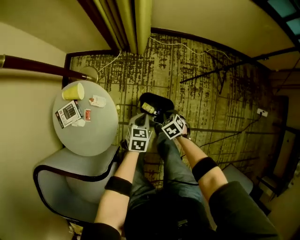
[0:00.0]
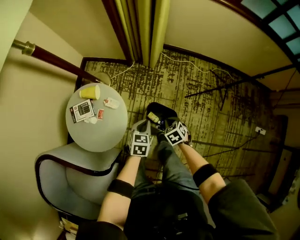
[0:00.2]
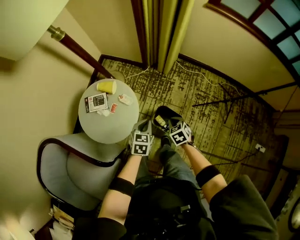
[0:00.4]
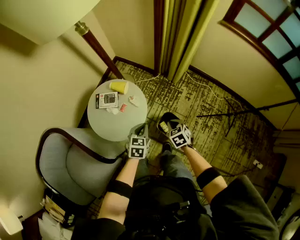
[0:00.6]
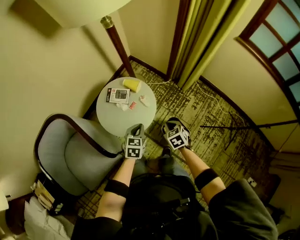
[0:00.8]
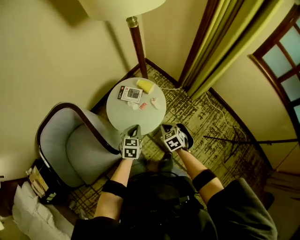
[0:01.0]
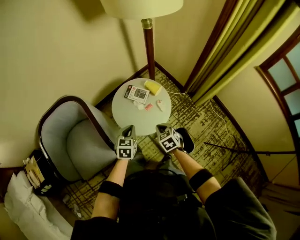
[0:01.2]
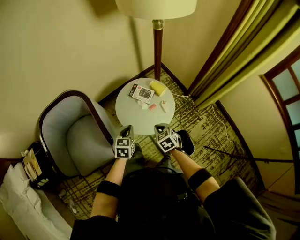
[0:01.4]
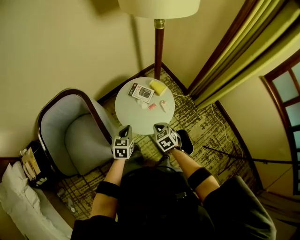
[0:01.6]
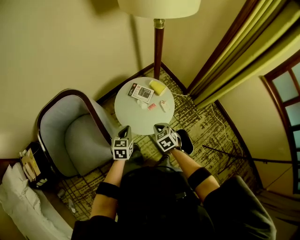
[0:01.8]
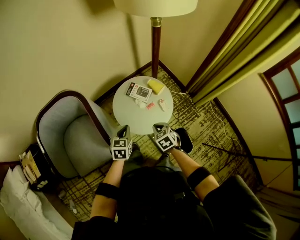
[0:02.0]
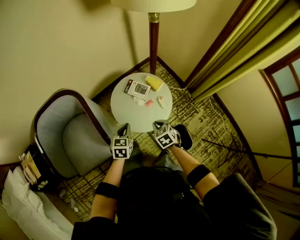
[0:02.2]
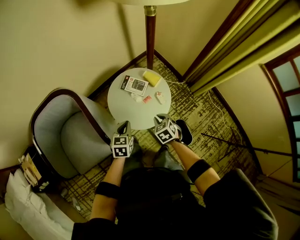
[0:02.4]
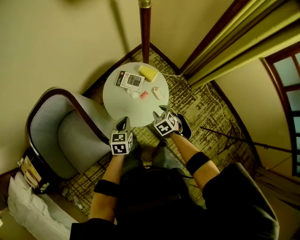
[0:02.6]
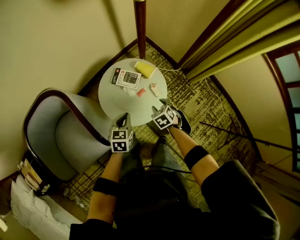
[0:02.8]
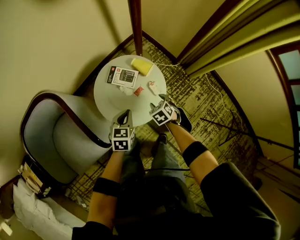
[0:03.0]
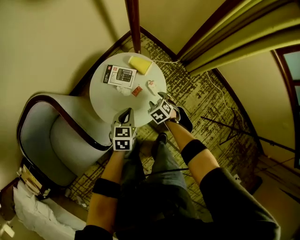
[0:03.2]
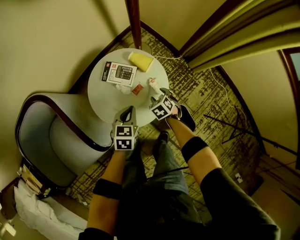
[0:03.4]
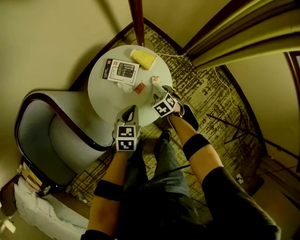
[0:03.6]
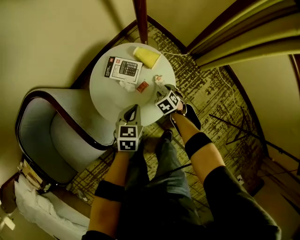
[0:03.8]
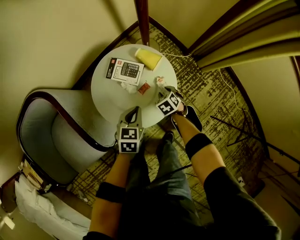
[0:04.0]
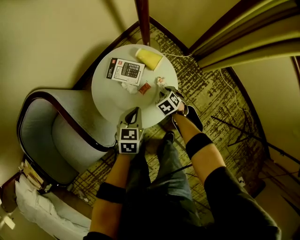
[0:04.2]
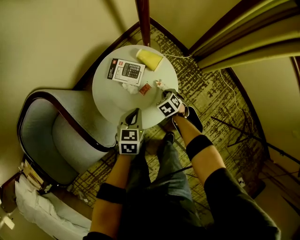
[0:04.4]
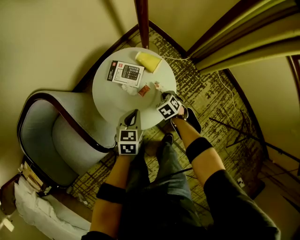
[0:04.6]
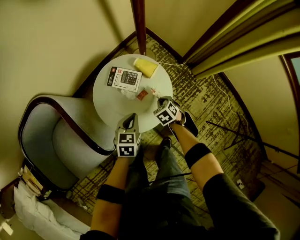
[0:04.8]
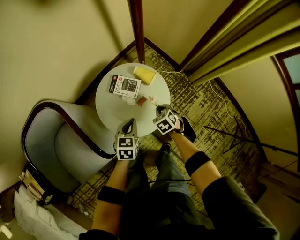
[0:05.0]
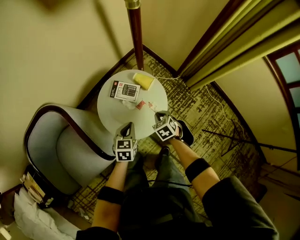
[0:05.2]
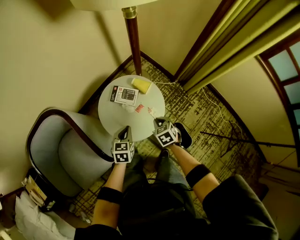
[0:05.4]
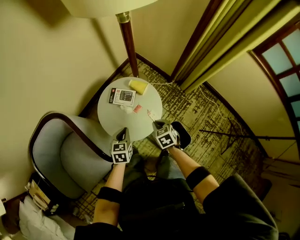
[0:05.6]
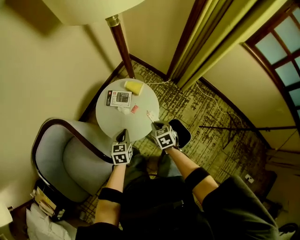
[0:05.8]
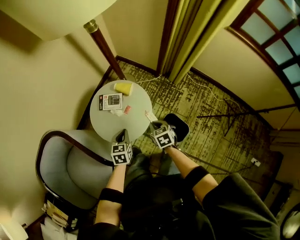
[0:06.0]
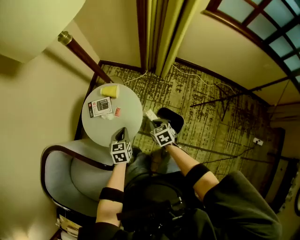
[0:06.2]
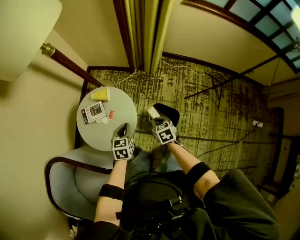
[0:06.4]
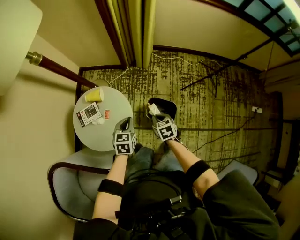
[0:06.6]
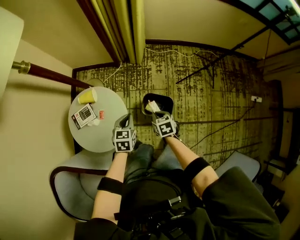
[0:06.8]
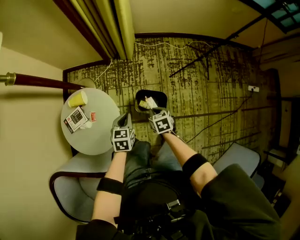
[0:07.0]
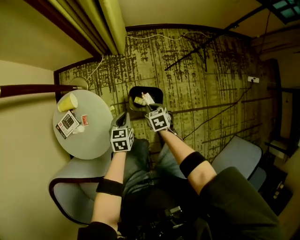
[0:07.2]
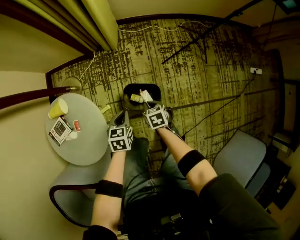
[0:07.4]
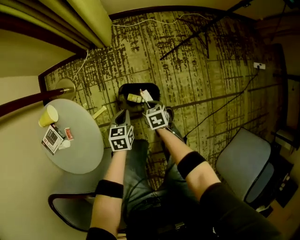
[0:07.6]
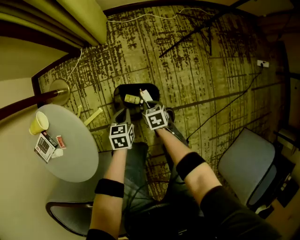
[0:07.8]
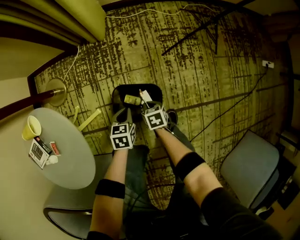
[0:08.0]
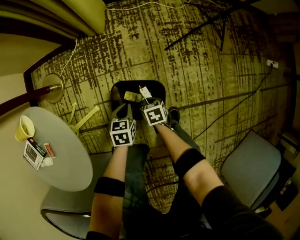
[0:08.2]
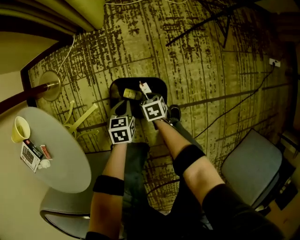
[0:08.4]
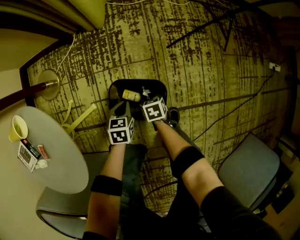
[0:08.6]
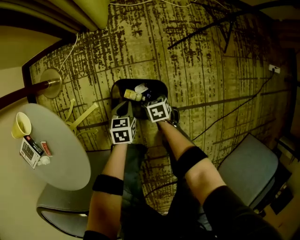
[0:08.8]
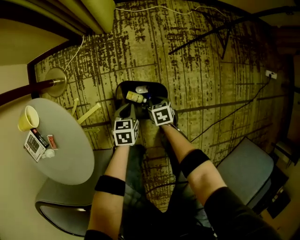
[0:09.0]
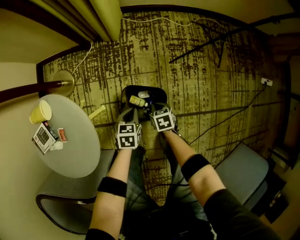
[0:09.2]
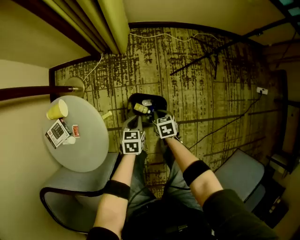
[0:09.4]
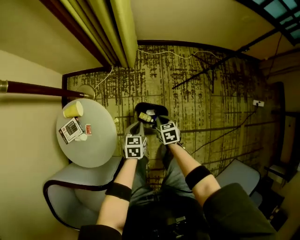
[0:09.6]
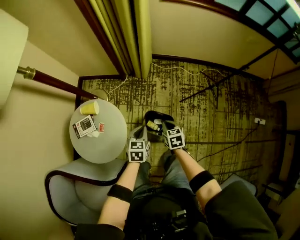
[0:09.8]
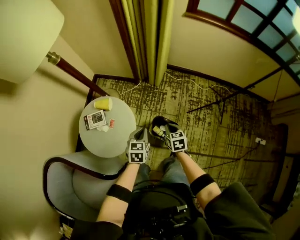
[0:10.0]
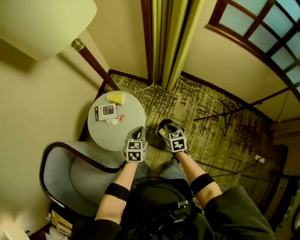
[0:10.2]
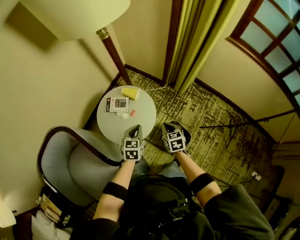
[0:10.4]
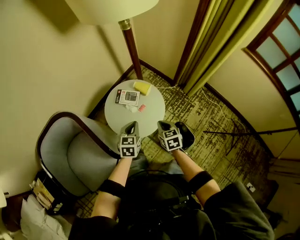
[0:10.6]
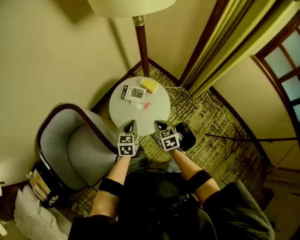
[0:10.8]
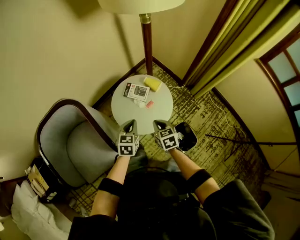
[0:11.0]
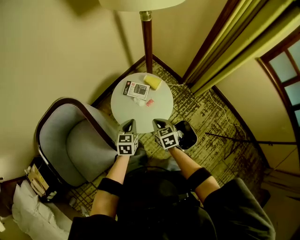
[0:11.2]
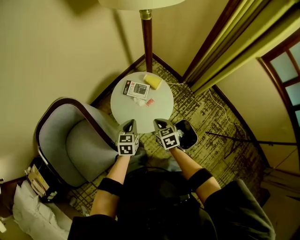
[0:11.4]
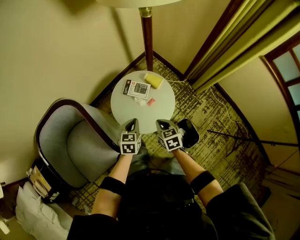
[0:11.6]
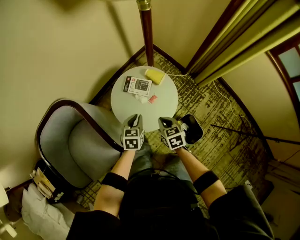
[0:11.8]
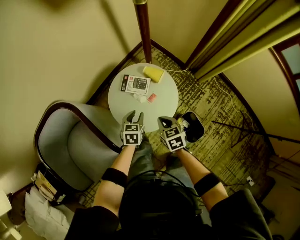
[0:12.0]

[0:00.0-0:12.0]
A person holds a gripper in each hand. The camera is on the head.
0:00.0 to 0:01.6: The right gripper shifts by approximately 40 cm, and rolls counterclockwise, seen from behind, by roughly 40 degrees, while the left gripper moves about 50 cm, and swivels roughly 60 degrees.
0:01.6 to 0:03.0: The left gripper heads downward, forward and to the right, covering roughly 15 cm. Meanwhile the right gripper moves downward, forward and to the right, some 20 cm, and opens its fingers.
0:03.0 to 0:04.4: The right gripper shifts approximately 15 cm downward, and closes its fingers, while the left gripper shifts roughly 10 cm downward.
0:04.4 to 0:06.0: The left gripper heads upward and backward, covering roughly 10 cm; the right gripper travels upward and backward by roughly 30 cm, and swivels about 40 degrees.
0:06.0 to 0:07.6: The left gripper changes place by roughly 40 cm, and swivels roughly 40 degrees, while the right gripper heads downward, covering roughly 30 cm, and rotates around the line of its fingers by approximately 40 degrees, clockwise from behind.
0:07.6 to 0:09.0: The grippers both shift downward by roughly 15 cm.
0:09.0 to 0:10.4: The two grippers go some 50 cm upward. The right gripper changes its angle by roughly 50 degrees. Meanwhile the left gripper turns by about 40 degrees.
0:10.4 to 0:12.0: The left gripper goes approximately 20 cm to the left, downward and forward, and opens. The right gripper is displaced to the left and forward by about 20 cm.

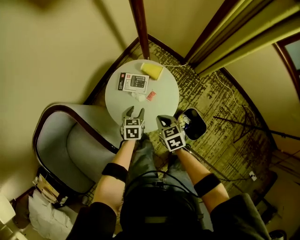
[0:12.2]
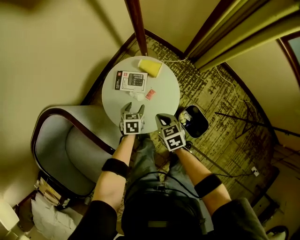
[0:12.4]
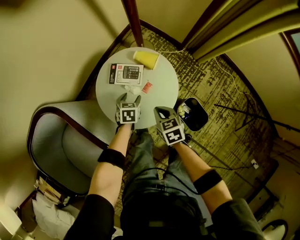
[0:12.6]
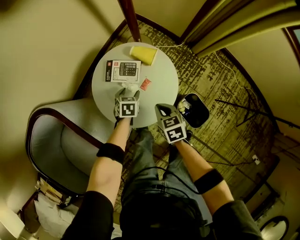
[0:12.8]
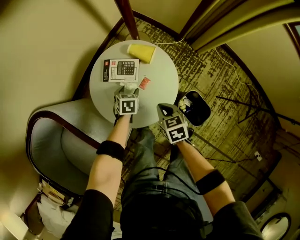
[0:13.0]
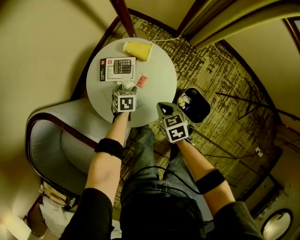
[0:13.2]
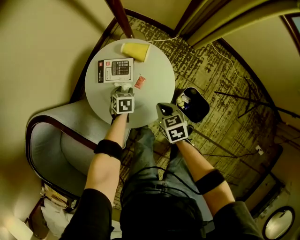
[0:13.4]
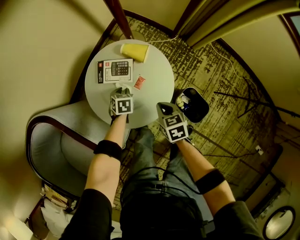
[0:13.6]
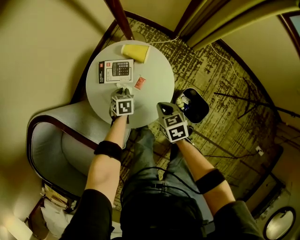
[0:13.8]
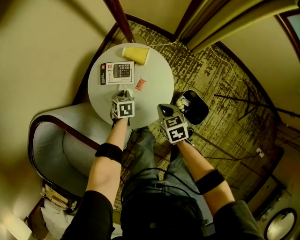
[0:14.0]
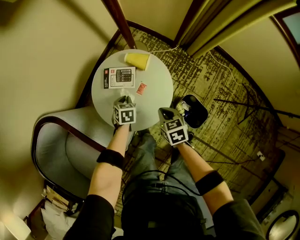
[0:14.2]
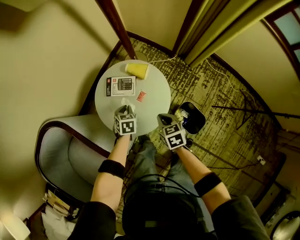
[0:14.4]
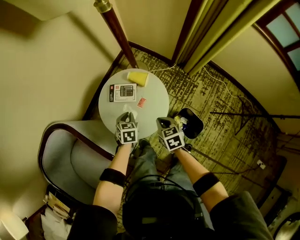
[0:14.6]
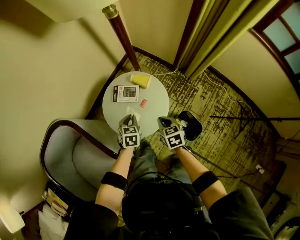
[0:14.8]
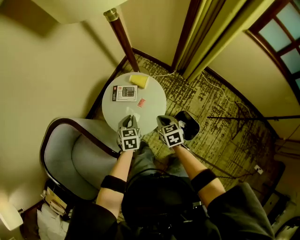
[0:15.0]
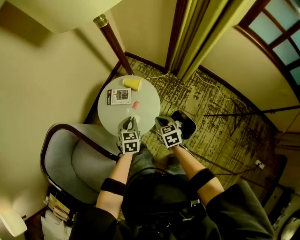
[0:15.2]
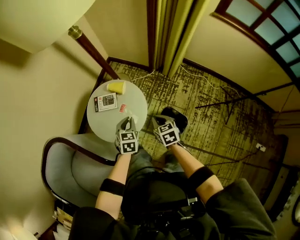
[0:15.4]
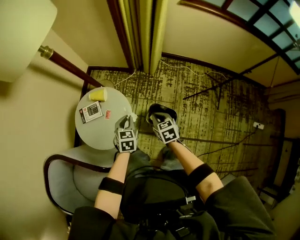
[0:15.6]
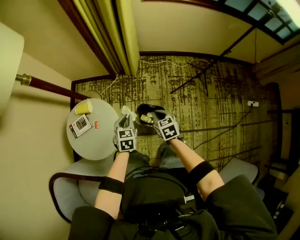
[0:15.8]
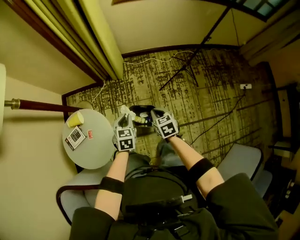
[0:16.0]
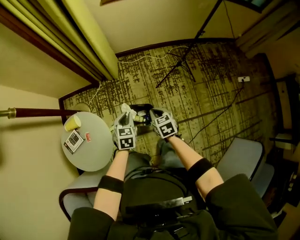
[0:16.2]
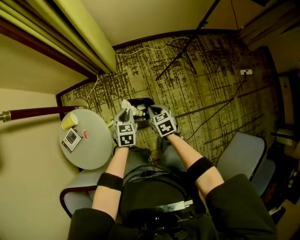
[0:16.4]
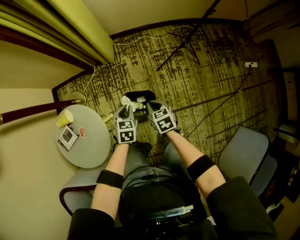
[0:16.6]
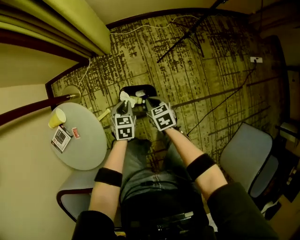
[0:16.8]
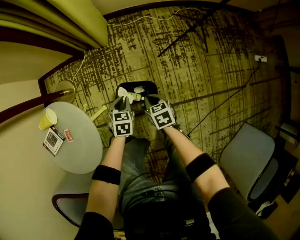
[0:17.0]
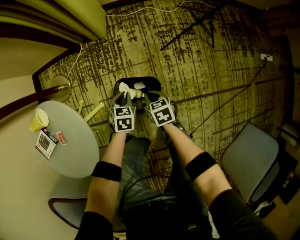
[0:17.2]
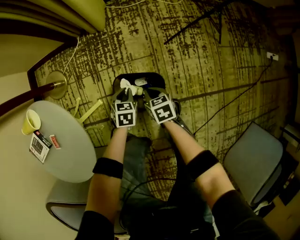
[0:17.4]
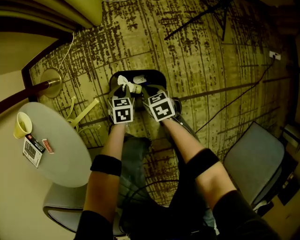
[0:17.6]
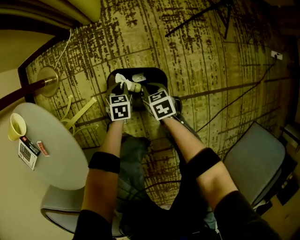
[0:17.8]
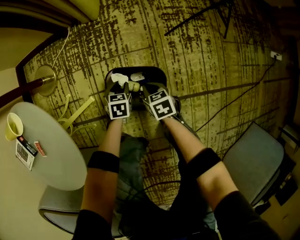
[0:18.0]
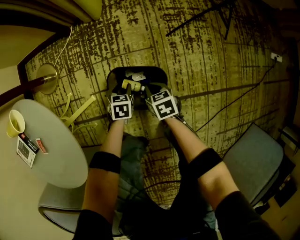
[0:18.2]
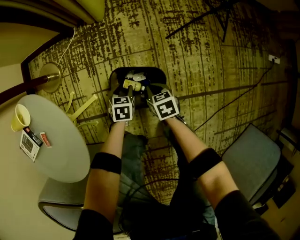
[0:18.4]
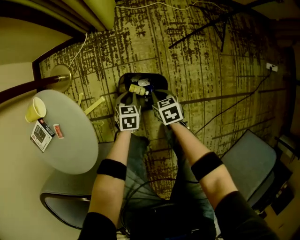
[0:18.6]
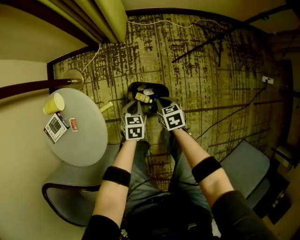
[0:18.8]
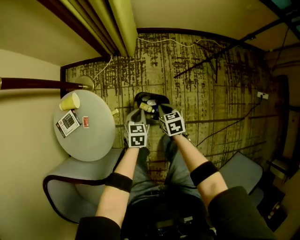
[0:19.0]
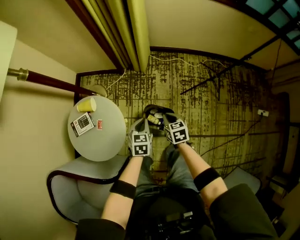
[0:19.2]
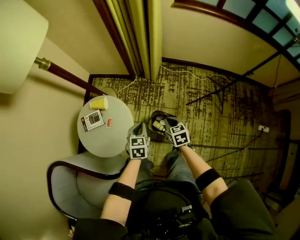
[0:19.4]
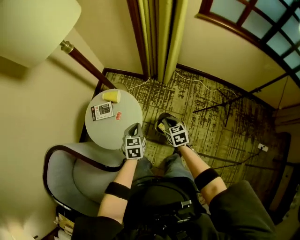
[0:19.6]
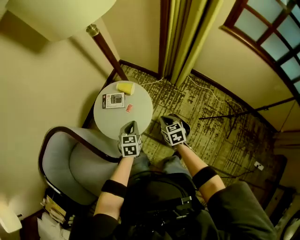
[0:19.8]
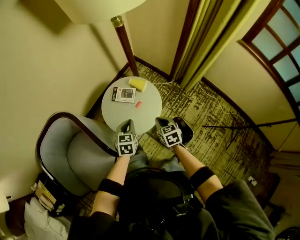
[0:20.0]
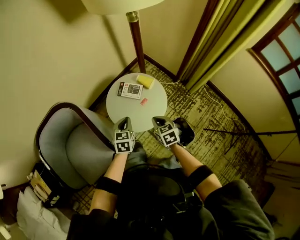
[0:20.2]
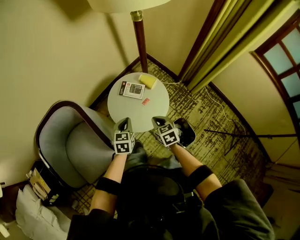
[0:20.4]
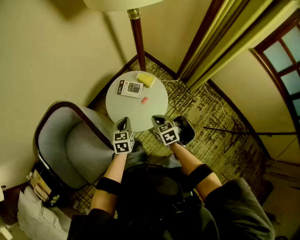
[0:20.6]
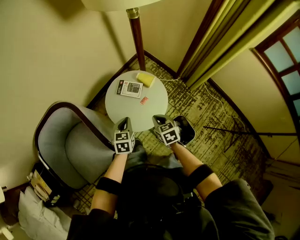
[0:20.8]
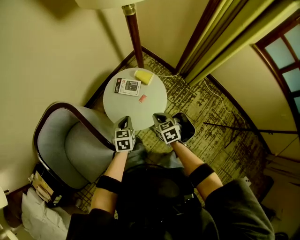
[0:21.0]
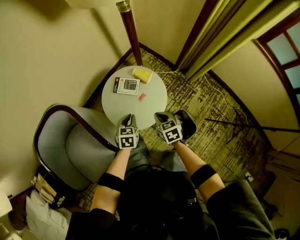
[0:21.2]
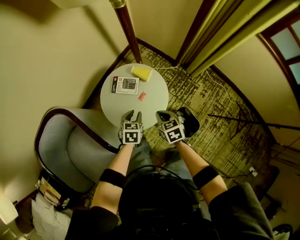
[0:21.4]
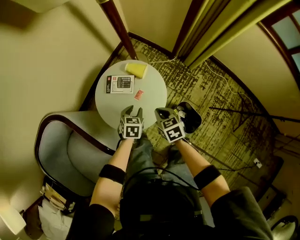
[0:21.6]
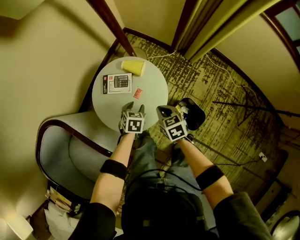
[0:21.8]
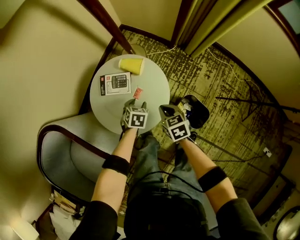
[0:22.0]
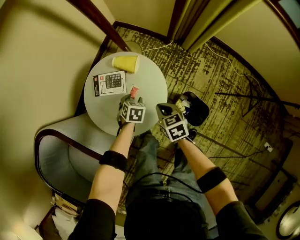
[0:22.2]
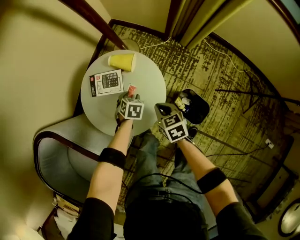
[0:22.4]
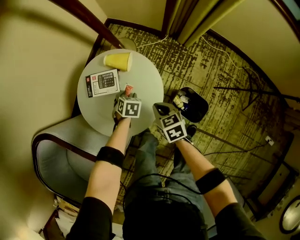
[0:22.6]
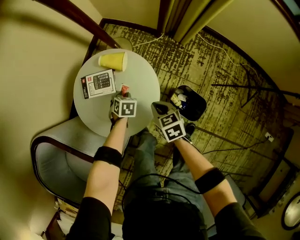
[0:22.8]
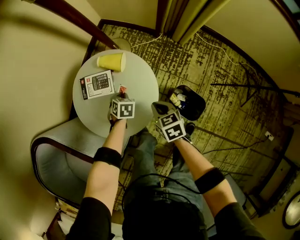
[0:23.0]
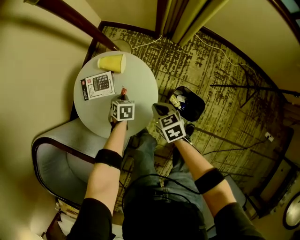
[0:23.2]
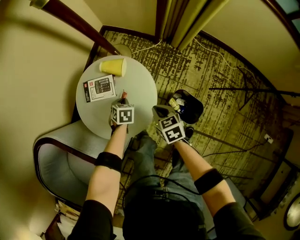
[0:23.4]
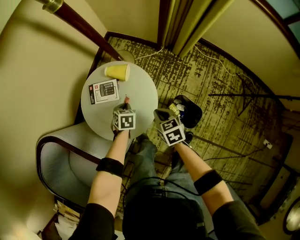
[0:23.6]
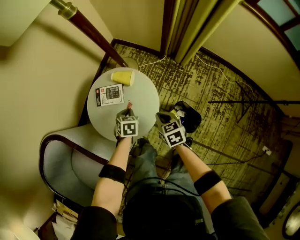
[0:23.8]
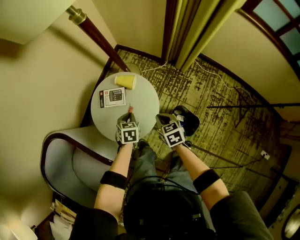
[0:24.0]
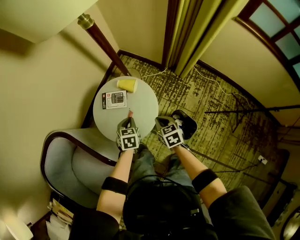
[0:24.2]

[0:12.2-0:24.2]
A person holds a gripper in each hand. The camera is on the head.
0:12.2 to 0:13.8: The left gripper heads downward and forward, covering some 15 cm, and closes up, while the right gripper shifts about 10 cm downward and to the right.
0:13.8 to 0:15.2: The left gripper travels upward and backward by approximately 30 cm, while the right gripper heads upward, covering approximately 15 cm.
0:15.2 to 0:16.6: The left gripper moves some 40 cm, and swivels about 50 degrees; the right gripper moves about 35 cm, and turns by about 40 degrees.
0:16.6 to 0:18.2: The two grippers go roughly 40 cm downward. The left gripper opens up.
0:18.2 to 0:19.8: Both grippers travel together upward, approximately 60 cm. The right gripper swivels roughly 40 degrees. The left gripper turns by some 50 degrees, and closes.
0:19.8 to 0:21.2: The right gripper is displaced to the left and forward by some 15 cm, while the left gripper goes some 15 cm to the left, forward and downward.
0:21.2 to 0:22.6: The left gripper shifts some 30 cm downward and forward, turns by some 30 degrees, and opens up. Meanwhile the right gripper travels downward by some 15 cm.
0:22.6 to 0:24.2: The right gripper goes some 15 cm upward, while the left gripper heads upward, covering roughly 25 cm, turns by roughly 20 degrees, and closes up.
